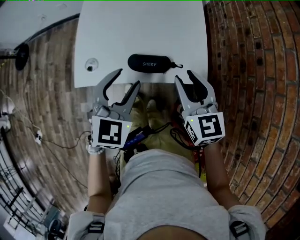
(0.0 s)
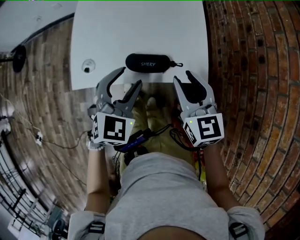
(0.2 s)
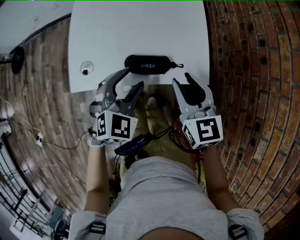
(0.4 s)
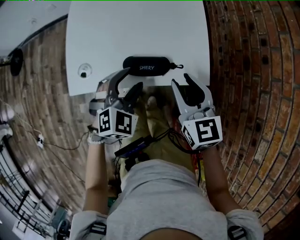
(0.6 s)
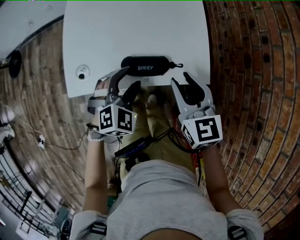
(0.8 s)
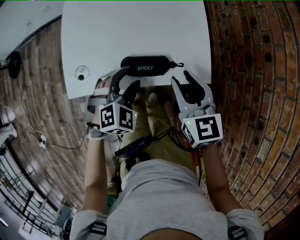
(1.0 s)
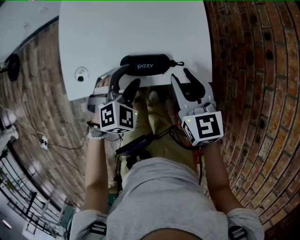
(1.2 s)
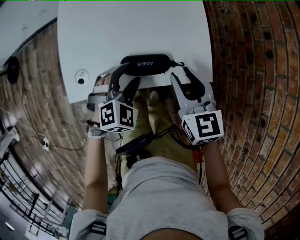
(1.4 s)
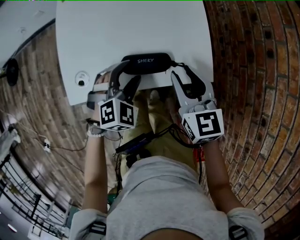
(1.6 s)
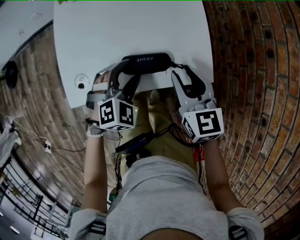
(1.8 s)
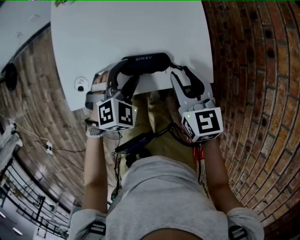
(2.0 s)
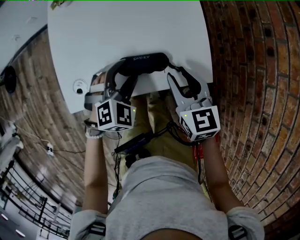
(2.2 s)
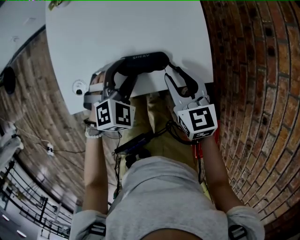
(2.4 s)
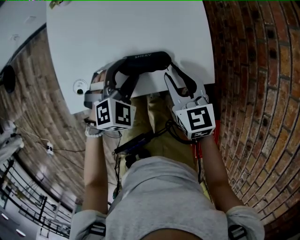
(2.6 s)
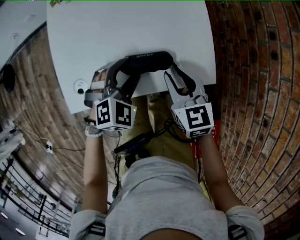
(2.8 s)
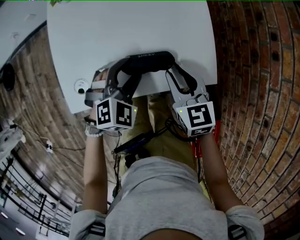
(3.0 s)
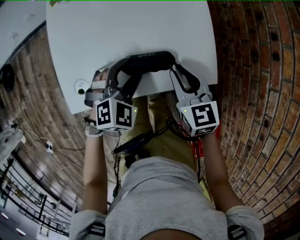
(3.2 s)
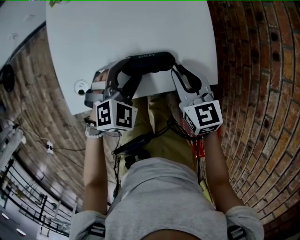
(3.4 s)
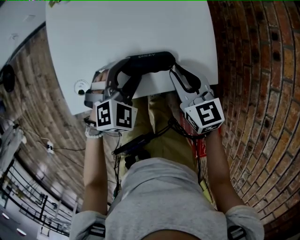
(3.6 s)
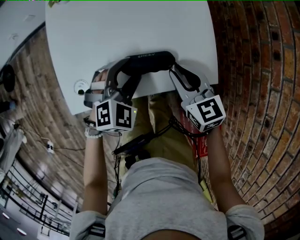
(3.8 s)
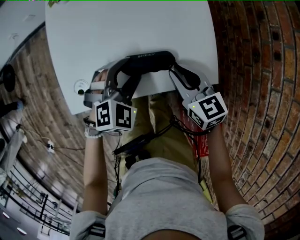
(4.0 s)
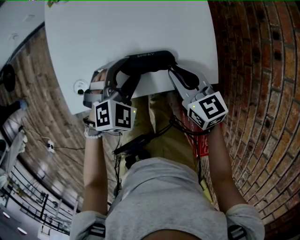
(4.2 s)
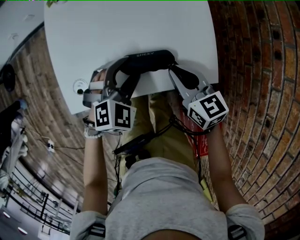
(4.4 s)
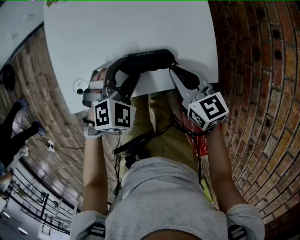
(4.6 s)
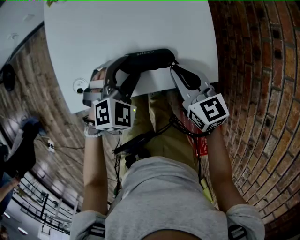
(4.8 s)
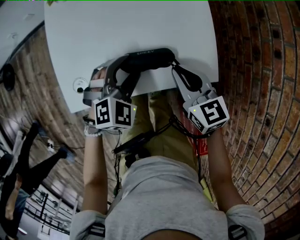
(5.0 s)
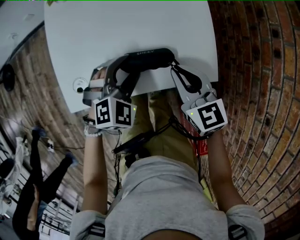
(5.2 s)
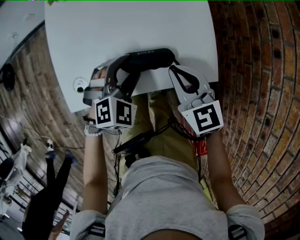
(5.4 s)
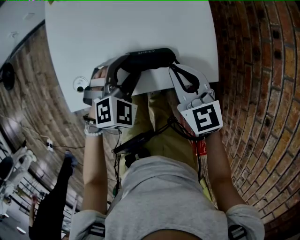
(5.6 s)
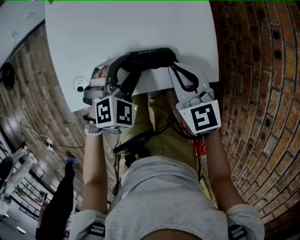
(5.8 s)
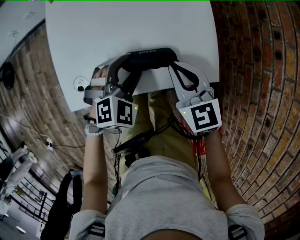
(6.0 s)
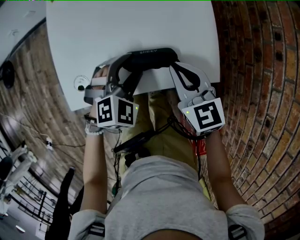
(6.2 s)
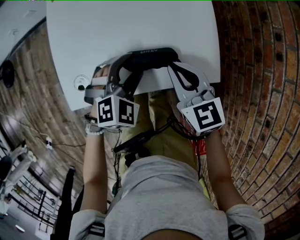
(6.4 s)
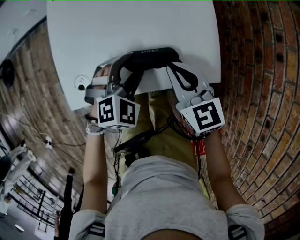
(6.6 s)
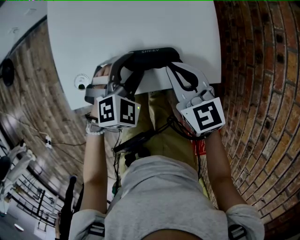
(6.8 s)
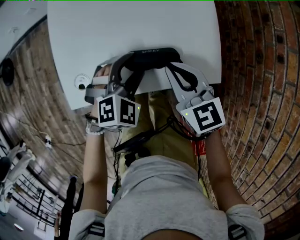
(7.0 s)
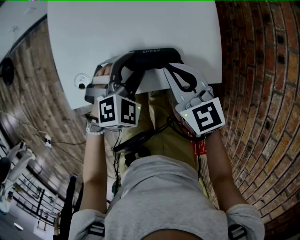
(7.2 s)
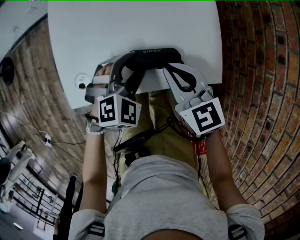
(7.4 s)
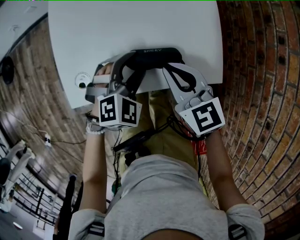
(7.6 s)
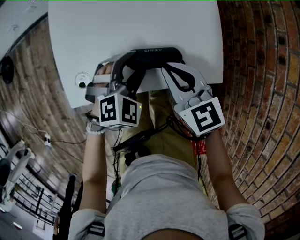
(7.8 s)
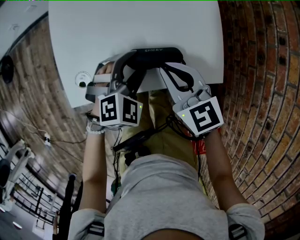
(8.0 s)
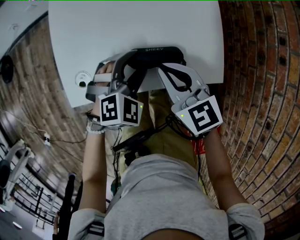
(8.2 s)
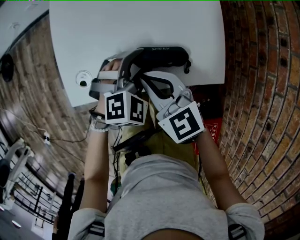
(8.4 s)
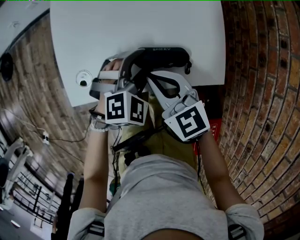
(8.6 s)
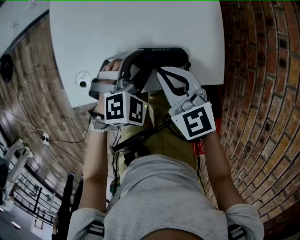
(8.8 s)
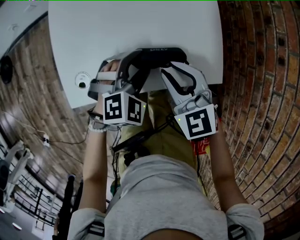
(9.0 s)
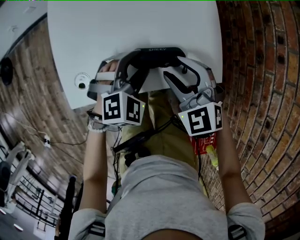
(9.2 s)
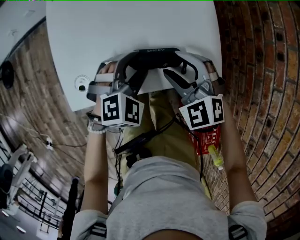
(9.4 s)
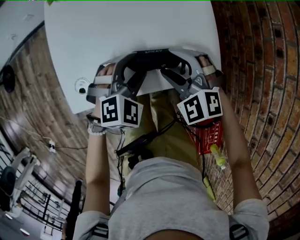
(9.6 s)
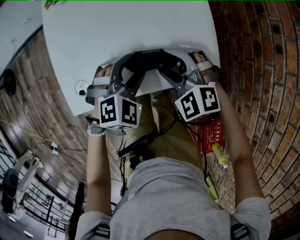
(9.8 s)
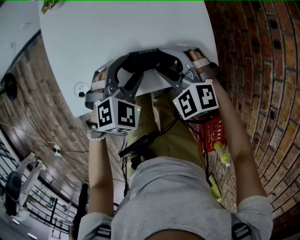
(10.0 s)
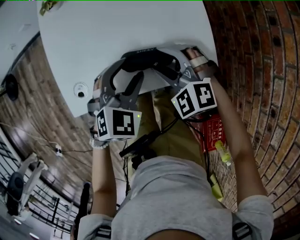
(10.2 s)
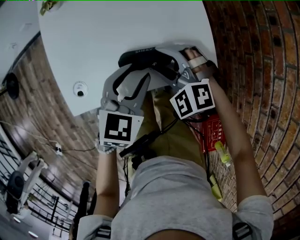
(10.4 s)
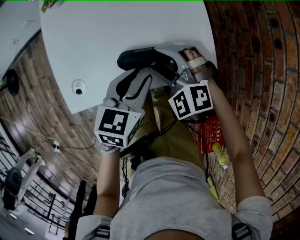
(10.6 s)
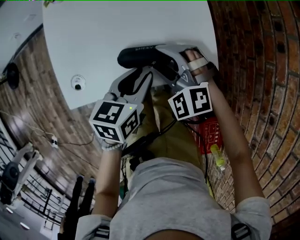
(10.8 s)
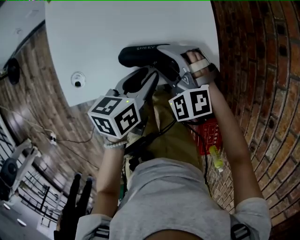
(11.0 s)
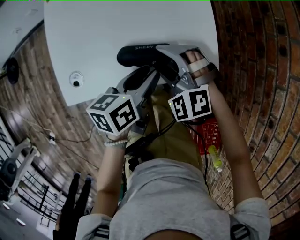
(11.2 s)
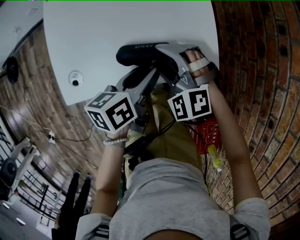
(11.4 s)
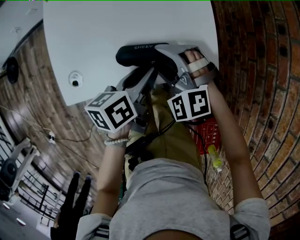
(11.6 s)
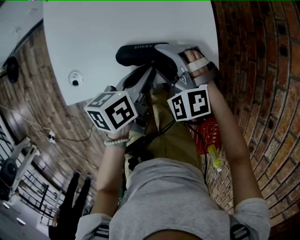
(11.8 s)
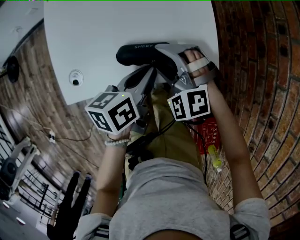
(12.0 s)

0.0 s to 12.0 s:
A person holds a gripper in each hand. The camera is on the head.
0.0 to 1.6 s: The left gripper is displaced downward and forward by approximately 15 cm, and rotates about 30 degrees, while the right gripper heads downward, covering about 5 cm.
1.6 to 3.0 s: The right gripper is displaced downward by approximately 5 cm.
3.0 to 4.4 s: The grippers move only a little.
4.4 to 6.0 s: The right gripper rotates approximately 20 degrees.
6.0 to 7.6 s: The grippers make only small movements.
7.6 to 9.0 s: The right gripper turns by roughly 20 degrees.
9.0 to 10.4 s: The left gripper goes approximately 5 cm upward, and swivels roughly 40 degrees, while the right gripper changes its angle by some 30 degrees, and opens.
10.4 to 12.0 s: The left gripper rolls counterclockwise, seen from behind, by about 50 degrees, and closes its fingers.

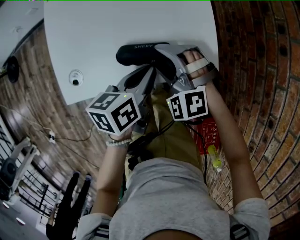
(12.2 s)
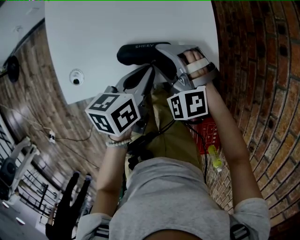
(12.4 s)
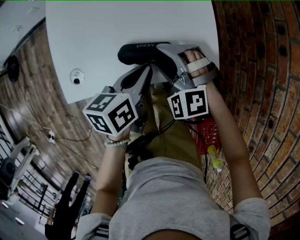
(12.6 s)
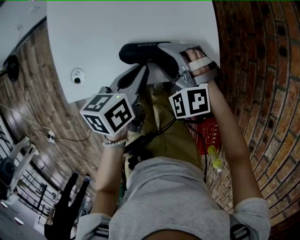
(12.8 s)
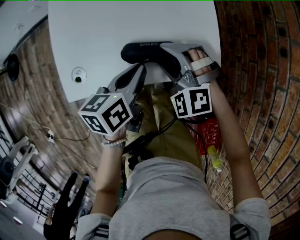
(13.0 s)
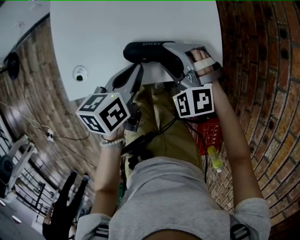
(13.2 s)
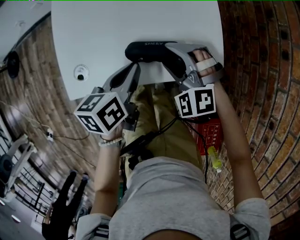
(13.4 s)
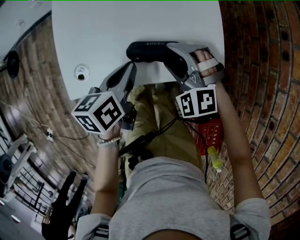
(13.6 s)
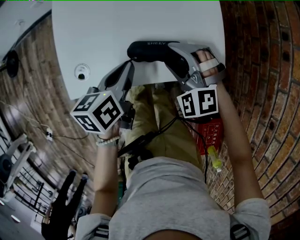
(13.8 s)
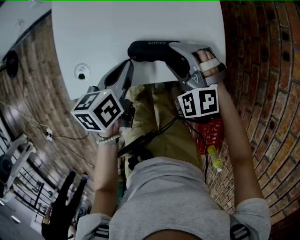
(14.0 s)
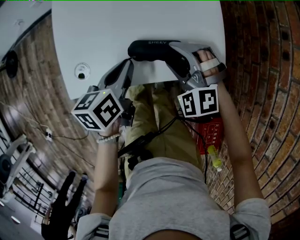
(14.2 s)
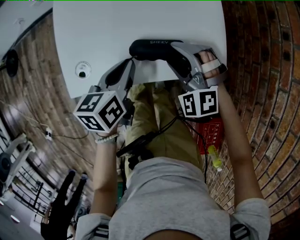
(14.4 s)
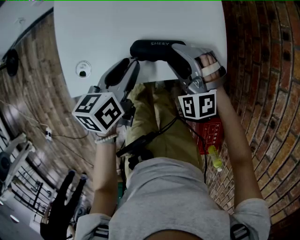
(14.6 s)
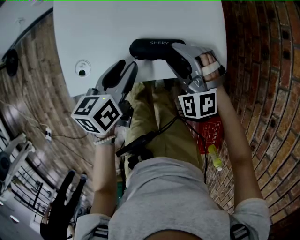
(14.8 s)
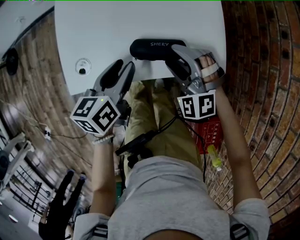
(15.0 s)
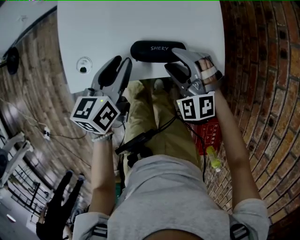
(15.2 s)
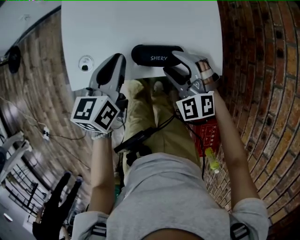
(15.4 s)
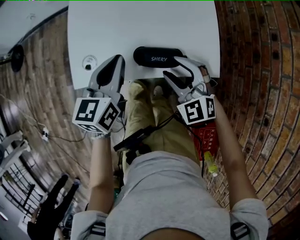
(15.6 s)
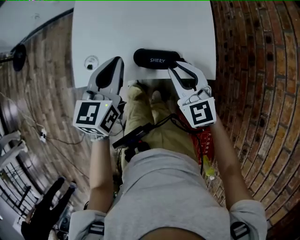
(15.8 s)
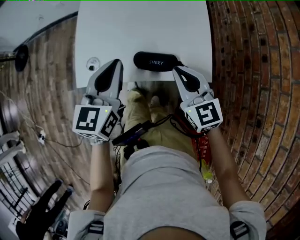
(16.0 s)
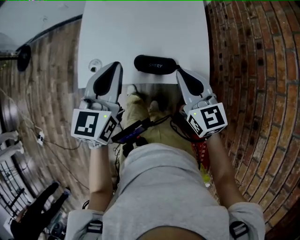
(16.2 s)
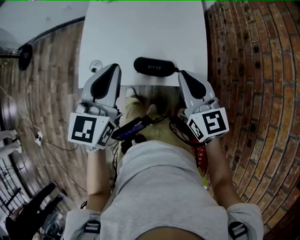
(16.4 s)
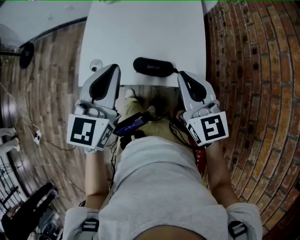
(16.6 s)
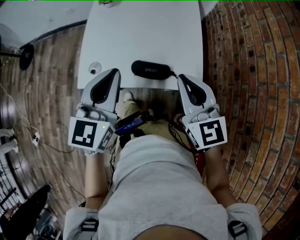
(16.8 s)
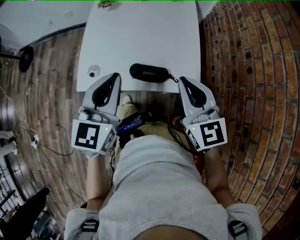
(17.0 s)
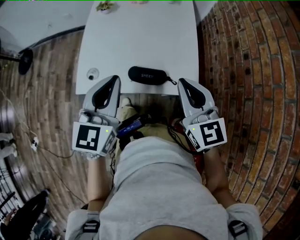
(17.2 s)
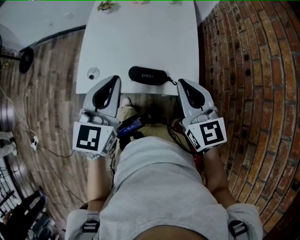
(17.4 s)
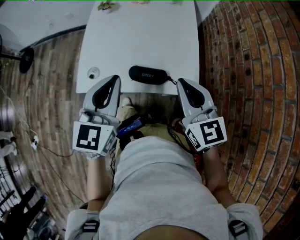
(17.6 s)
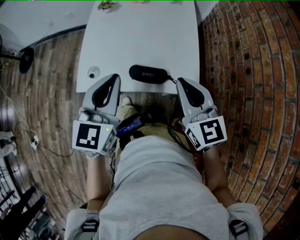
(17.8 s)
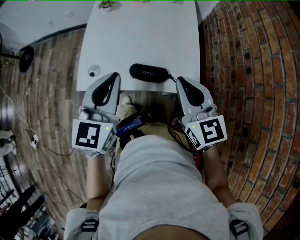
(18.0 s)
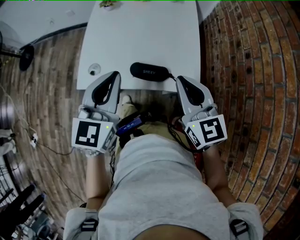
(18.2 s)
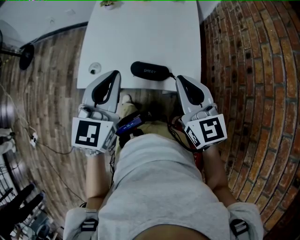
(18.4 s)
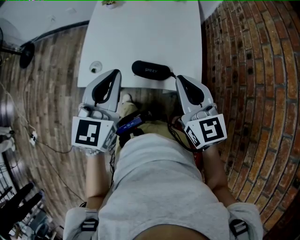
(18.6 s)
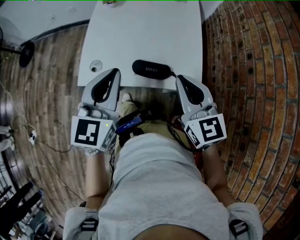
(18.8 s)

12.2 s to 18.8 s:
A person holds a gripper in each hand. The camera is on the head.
12.2 to 13.8 s: The left gripper heads to the left, covering about 10 cm.
13.8 to 15.4 s: The left gripper shifts by approximately 5 cm, rotates roughly 20 degrees, and opens, then closes again.
15.4 to 17.2 s: The right gripper is displaced upward by about 20 cm, twists some 40 degrees clockwise, seen from behind, and closes up, while the left gripper goes about 15 cm upward and backward, and turns by approximately 30 degrees.
17.2 to 18.8 s: The grippers make only small movements.

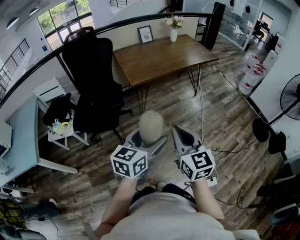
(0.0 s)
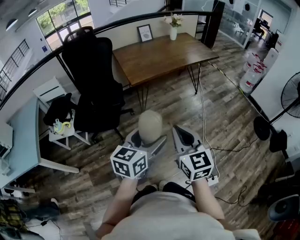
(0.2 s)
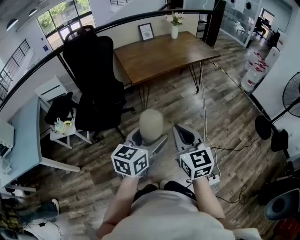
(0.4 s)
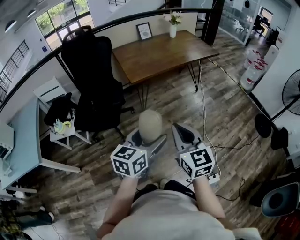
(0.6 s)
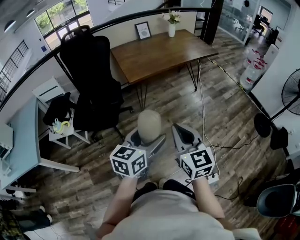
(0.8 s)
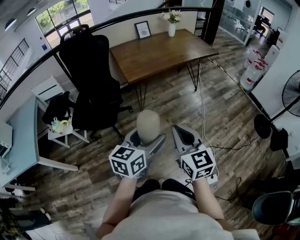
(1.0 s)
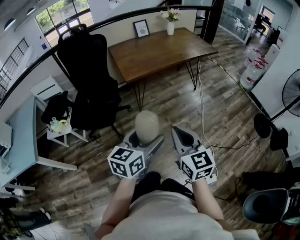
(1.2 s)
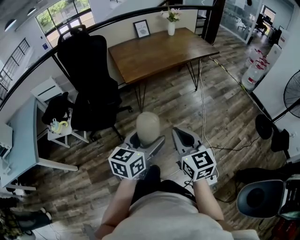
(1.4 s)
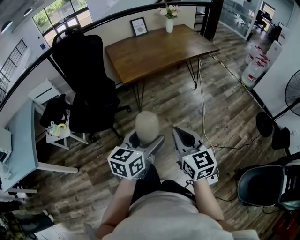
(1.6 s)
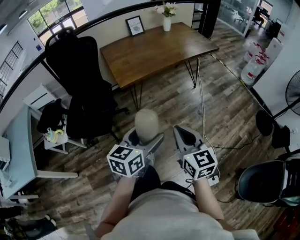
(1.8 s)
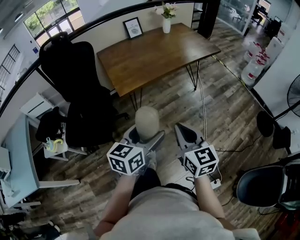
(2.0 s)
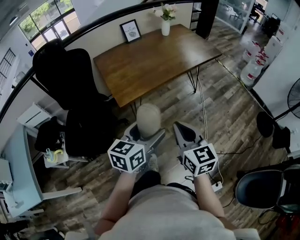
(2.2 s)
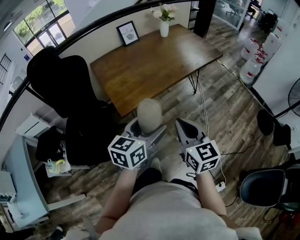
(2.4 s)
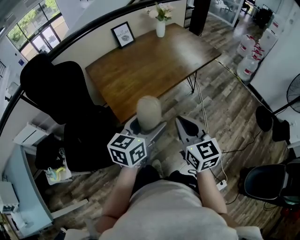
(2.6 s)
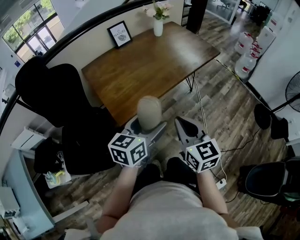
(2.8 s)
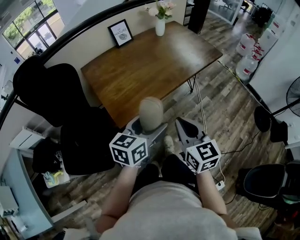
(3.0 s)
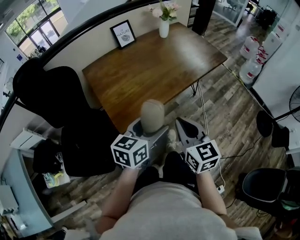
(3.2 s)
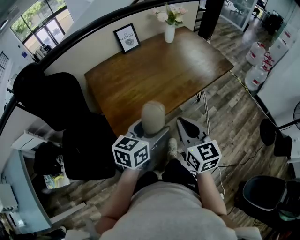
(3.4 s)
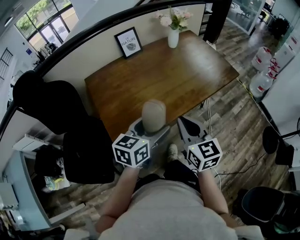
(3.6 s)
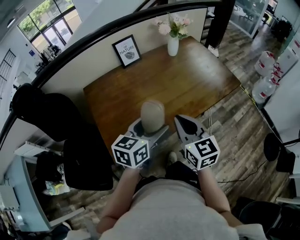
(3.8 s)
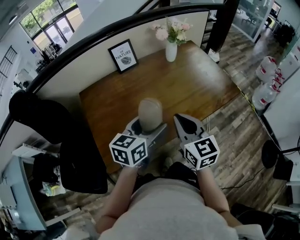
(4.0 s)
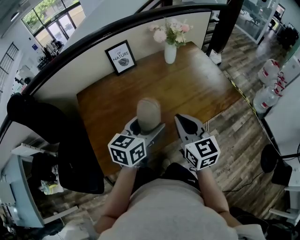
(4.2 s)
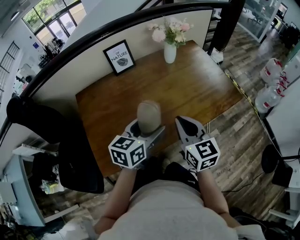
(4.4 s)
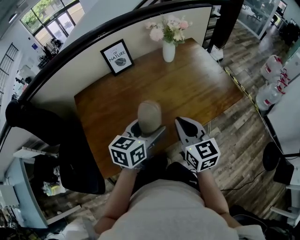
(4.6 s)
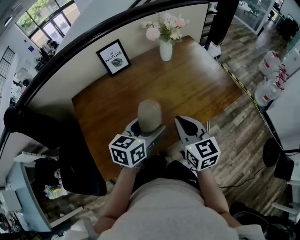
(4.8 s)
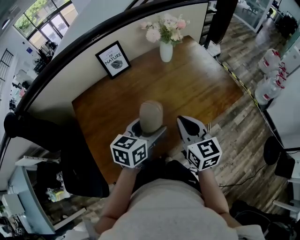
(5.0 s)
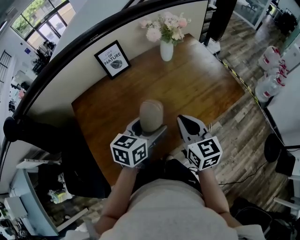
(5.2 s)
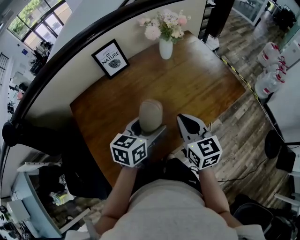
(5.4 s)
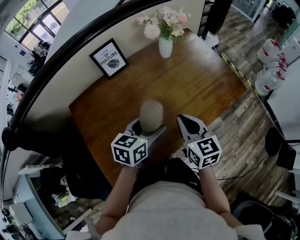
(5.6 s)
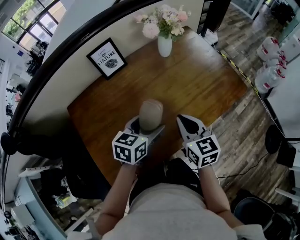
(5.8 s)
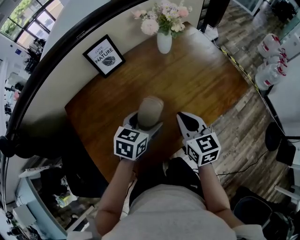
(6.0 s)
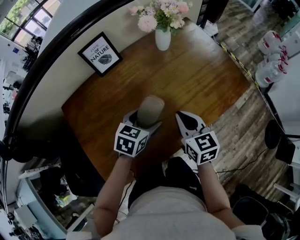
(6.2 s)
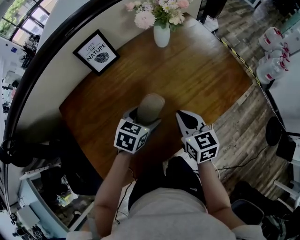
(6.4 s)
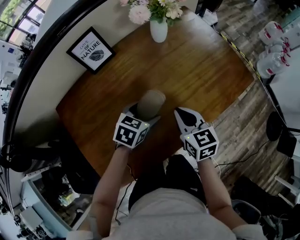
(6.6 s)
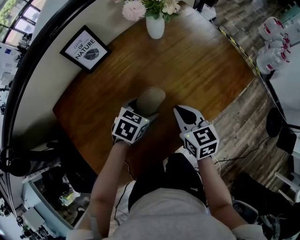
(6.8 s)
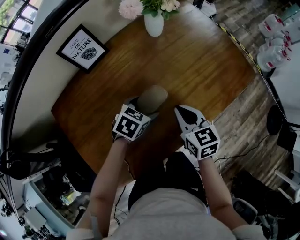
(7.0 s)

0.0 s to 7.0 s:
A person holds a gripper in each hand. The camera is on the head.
0.0 to 1.4 s: The right gripper shifts by some 5 cm; the left gripper ends up roughly 5 cm from where it was.
1.4 to 2.8 s: Both grippers move forward, about 35 cm.
2.8 to 4.2 s: Both grippers travel together forward, some 35 cm.
4.2 to 5.6 s: Both grippers move forward and downward, roughly 10 cm.
5.6 to 7.0 s: The grippers both shift downward and forward by about 15 cm. The left gripper changes its angle by some 40 degrees.
